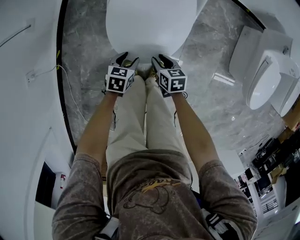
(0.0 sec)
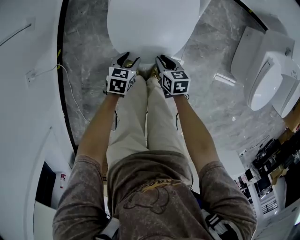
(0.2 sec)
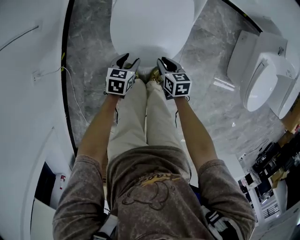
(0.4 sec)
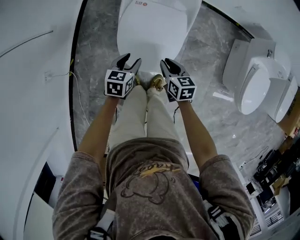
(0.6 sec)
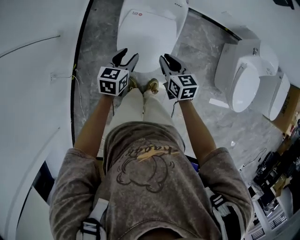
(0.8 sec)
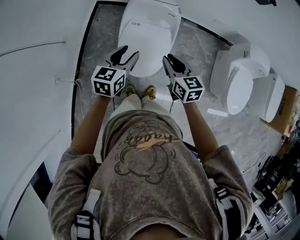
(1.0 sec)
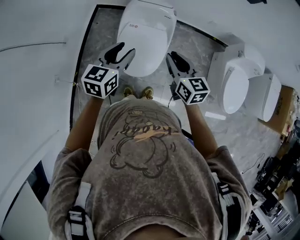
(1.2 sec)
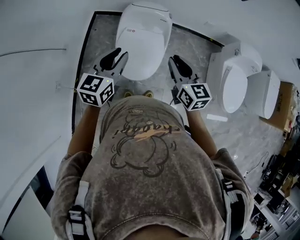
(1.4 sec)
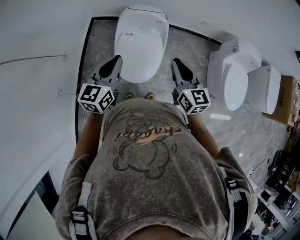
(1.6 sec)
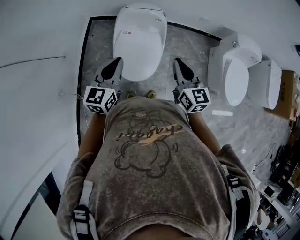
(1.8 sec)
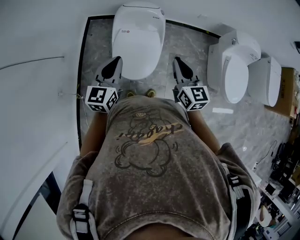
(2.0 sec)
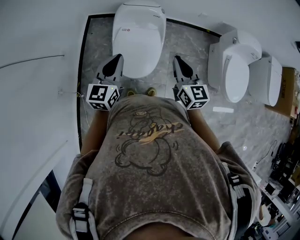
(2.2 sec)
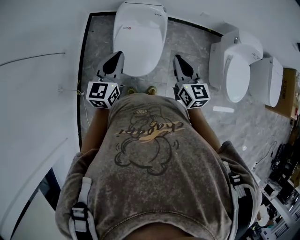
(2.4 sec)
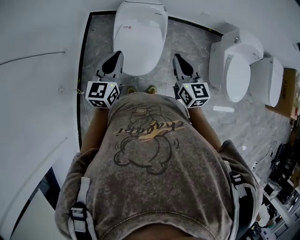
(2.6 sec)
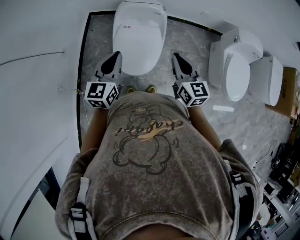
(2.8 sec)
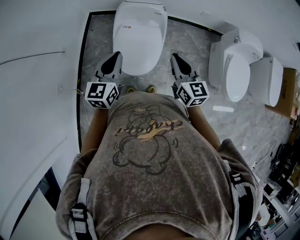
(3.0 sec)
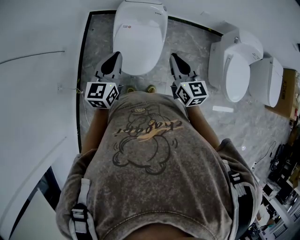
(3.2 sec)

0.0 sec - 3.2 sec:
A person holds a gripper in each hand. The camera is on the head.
0.0 sec - 1.6 sec: The grippers both shift upward by some 60 cm. The left gripper tilts its fingers about 40 degrees upward, and closes. The right gripper points its fingers some 40 degrees further upward, and closes up.
1.6 sec - 3.2 sec: The grippers move only a little.

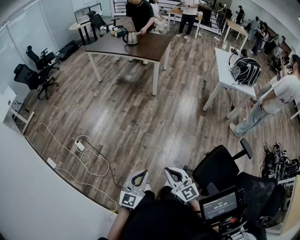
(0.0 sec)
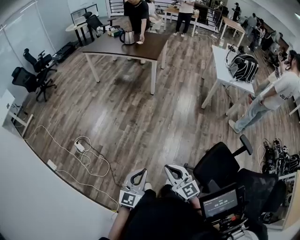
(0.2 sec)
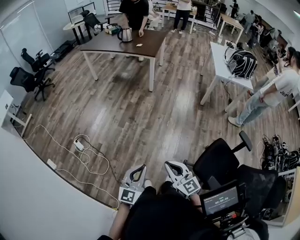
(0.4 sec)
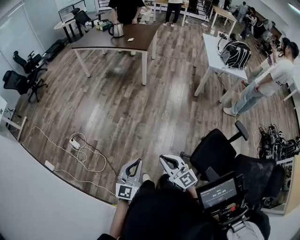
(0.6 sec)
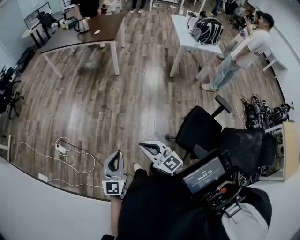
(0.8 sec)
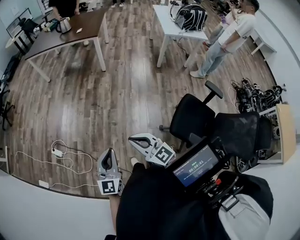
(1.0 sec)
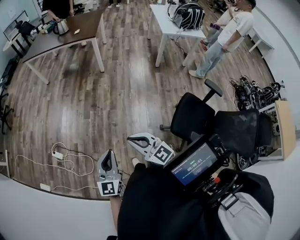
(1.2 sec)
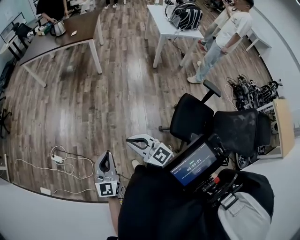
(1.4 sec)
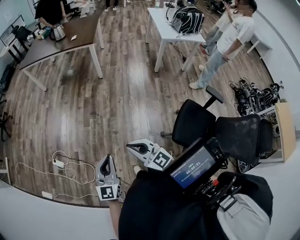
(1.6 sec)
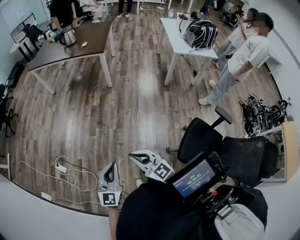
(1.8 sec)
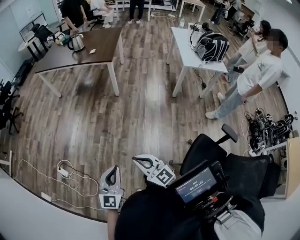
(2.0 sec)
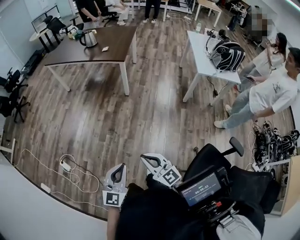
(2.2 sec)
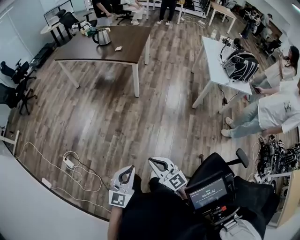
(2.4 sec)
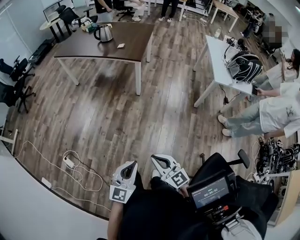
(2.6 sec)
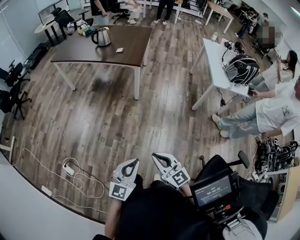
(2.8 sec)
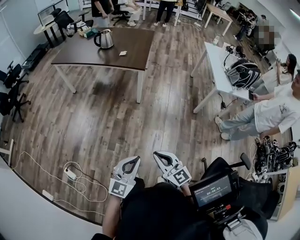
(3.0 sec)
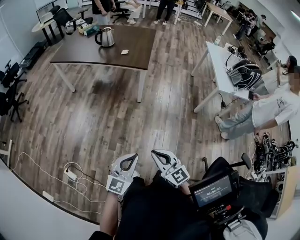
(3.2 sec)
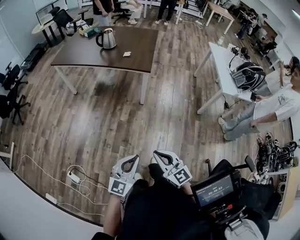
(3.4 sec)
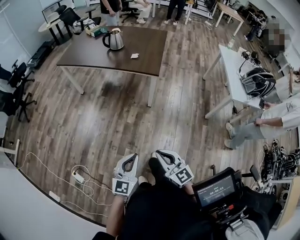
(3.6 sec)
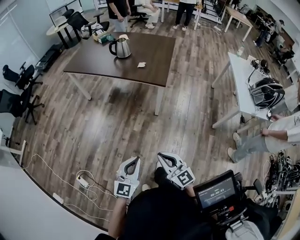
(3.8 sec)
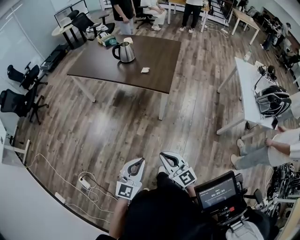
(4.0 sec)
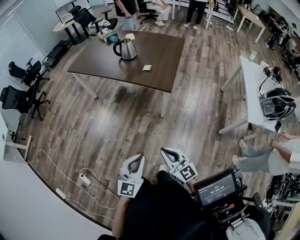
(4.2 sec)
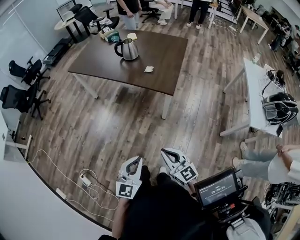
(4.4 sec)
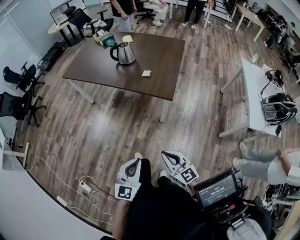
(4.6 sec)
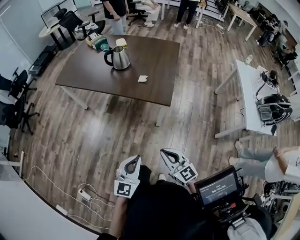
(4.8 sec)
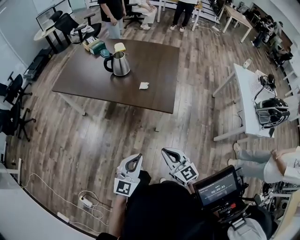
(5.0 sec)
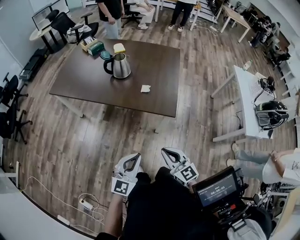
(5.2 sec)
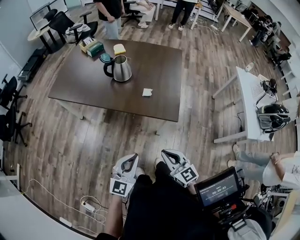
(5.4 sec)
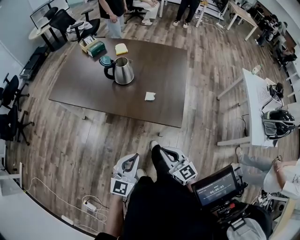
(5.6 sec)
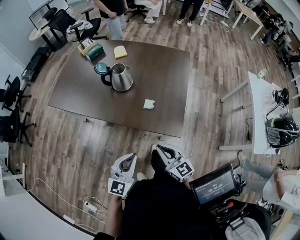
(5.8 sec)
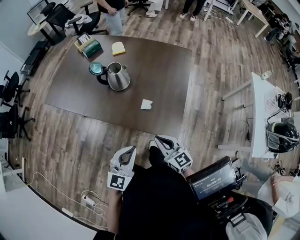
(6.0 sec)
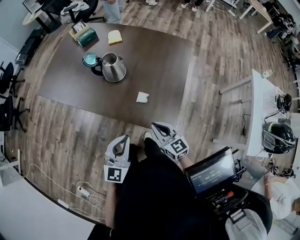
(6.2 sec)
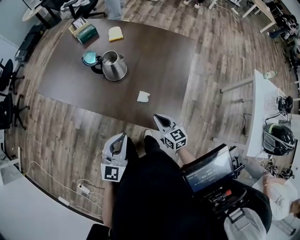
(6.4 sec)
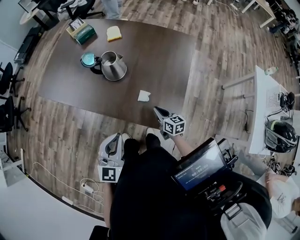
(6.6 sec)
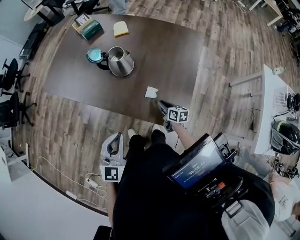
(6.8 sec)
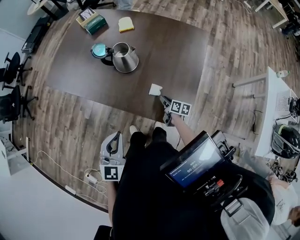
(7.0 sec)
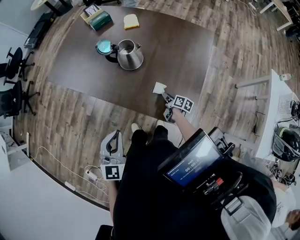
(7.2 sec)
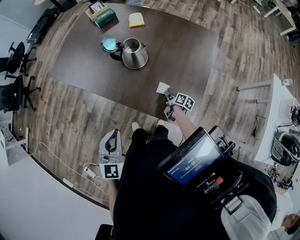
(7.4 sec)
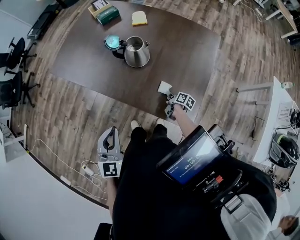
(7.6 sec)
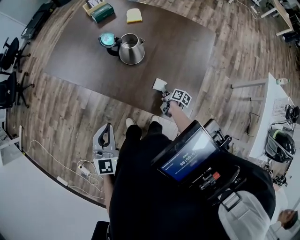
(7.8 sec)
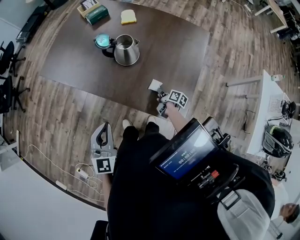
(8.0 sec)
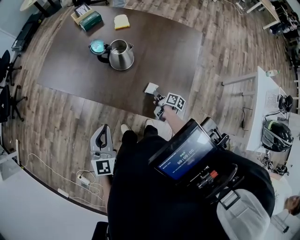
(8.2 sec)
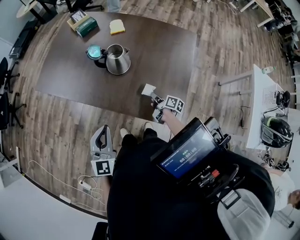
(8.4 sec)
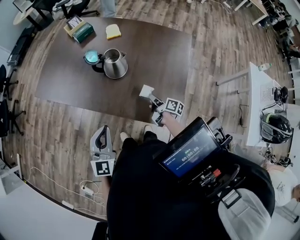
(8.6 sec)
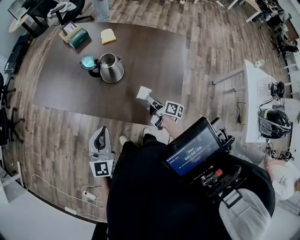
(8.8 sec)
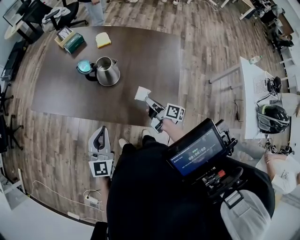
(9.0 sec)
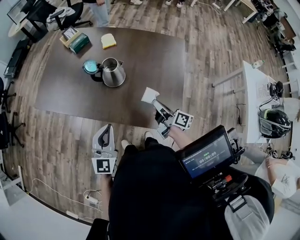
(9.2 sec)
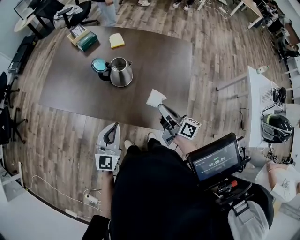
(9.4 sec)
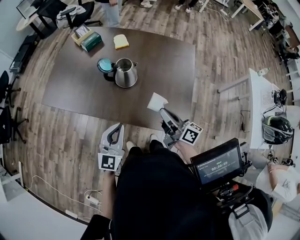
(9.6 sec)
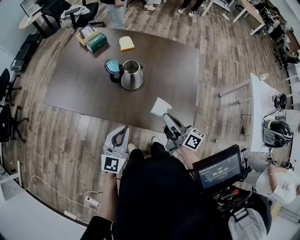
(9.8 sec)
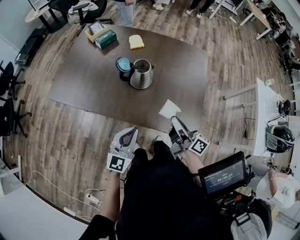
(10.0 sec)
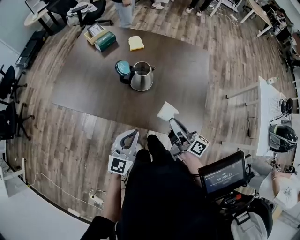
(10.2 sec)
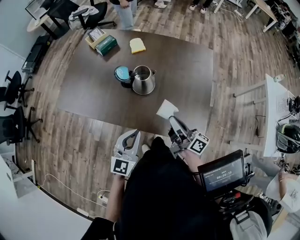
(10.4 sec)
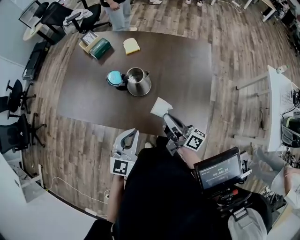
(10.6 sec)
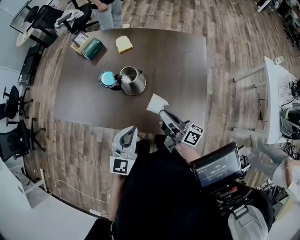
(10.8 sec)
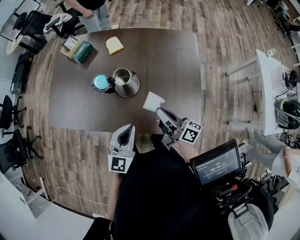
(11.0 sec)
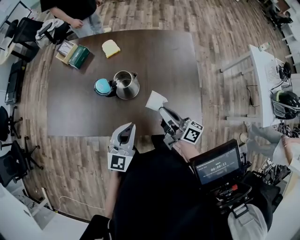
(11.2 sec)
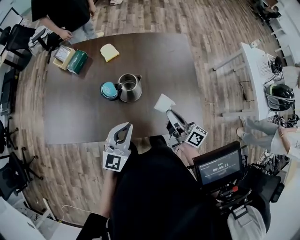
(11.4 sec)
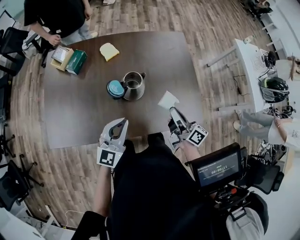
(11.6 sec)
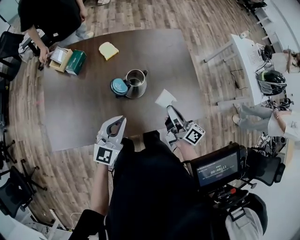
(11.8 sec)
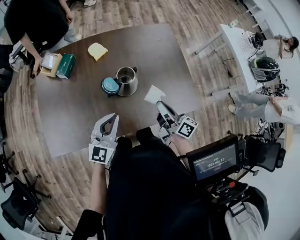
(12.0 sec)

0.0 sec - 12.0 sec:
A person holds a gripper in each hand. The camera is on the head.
0.0 sec - 1.6 sec: The two grippers go roughly 10 cm forward.
1.6 sec - 3.0 sec: The two grippers go some 35 cm forward.
3.0 sec - 4.4 sec: The two grippers go about 35 cm forward. The left gripper rotates some 20 degrees.
4.4 sec - 6.0 sec: Both grippers are carried forward, some 50 cm.
6.0 sec - 7.6 sec: The left gripper moves to the left and forward, about 15 cm, and turns by about 30 degrees, while the right gripper is displaced downward and forward by some 35 cm, rotates around the line of its fingers by about 70 degrees, clockwise from behind, and opens, then closes again.
7.6 sec - 9.0 sec: The left gripper goes some 5 cm forward; the right gripper shifts some 20 cm upward, and turns by approximately 30 degrees.
9.0 sec - 10.4 sec: The right gripper shifts roughly 15 cm upward and to the left, and turns by approximately 20 degrees.
10.4 sec - 12.0 sec: The left gripper ends up approximately 20 cm from where it was, and changes its angle by roughly 30 degrees; the right gripper changes place by roughly 10 cm, and changes its angle by roughly 30 degrees.

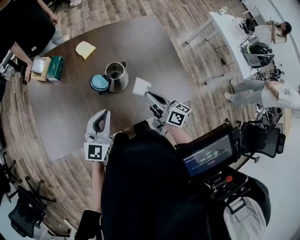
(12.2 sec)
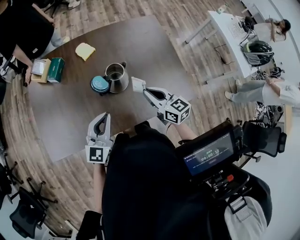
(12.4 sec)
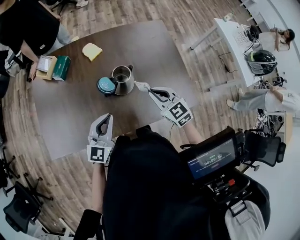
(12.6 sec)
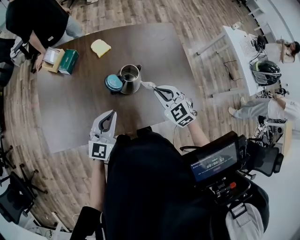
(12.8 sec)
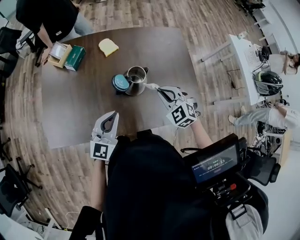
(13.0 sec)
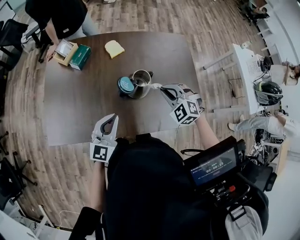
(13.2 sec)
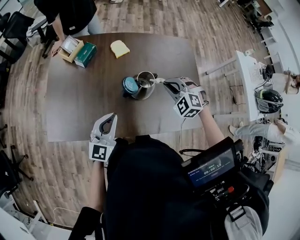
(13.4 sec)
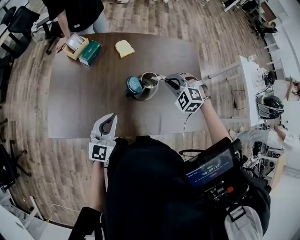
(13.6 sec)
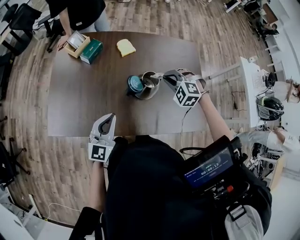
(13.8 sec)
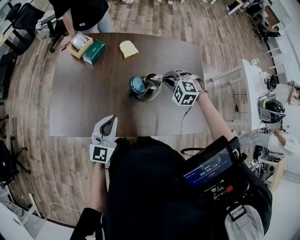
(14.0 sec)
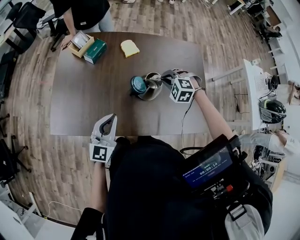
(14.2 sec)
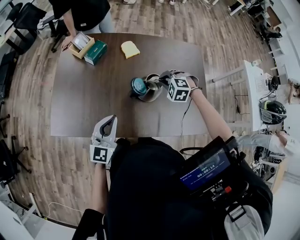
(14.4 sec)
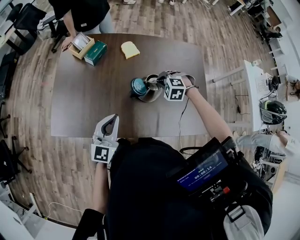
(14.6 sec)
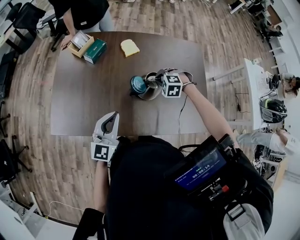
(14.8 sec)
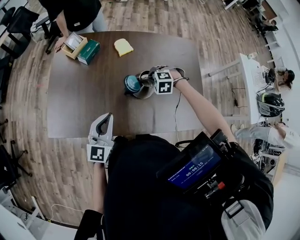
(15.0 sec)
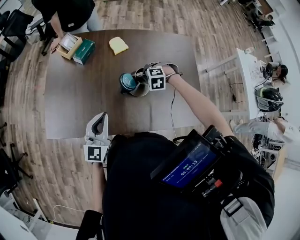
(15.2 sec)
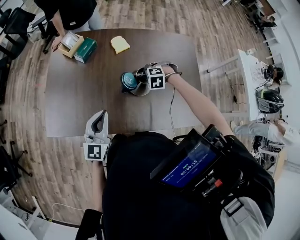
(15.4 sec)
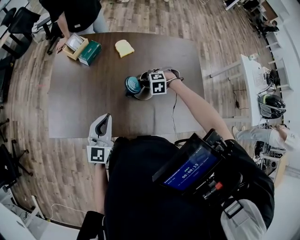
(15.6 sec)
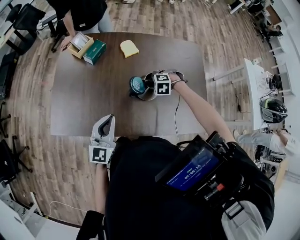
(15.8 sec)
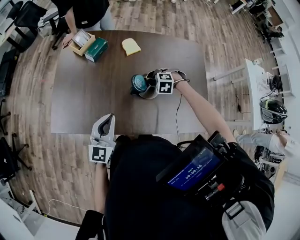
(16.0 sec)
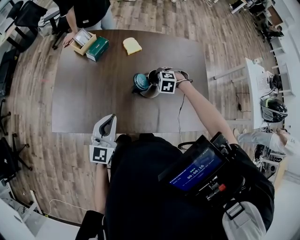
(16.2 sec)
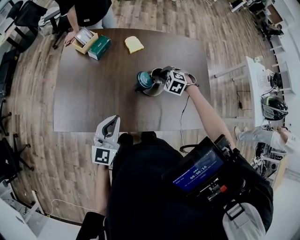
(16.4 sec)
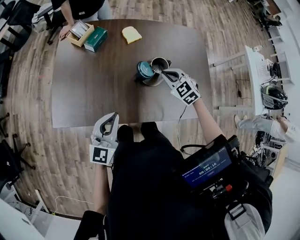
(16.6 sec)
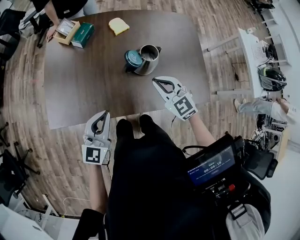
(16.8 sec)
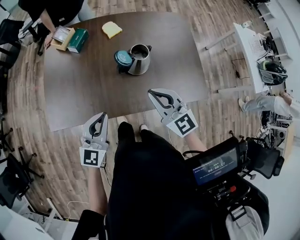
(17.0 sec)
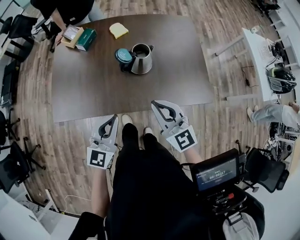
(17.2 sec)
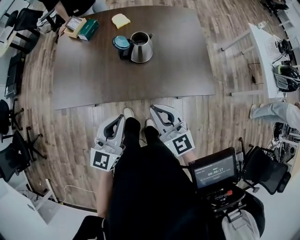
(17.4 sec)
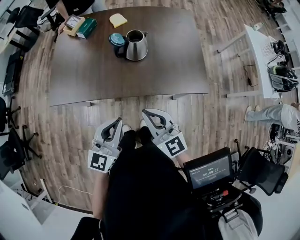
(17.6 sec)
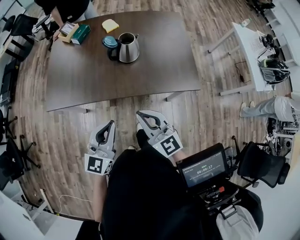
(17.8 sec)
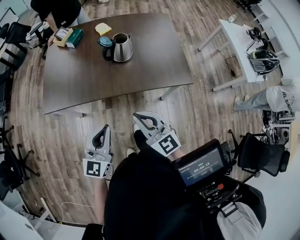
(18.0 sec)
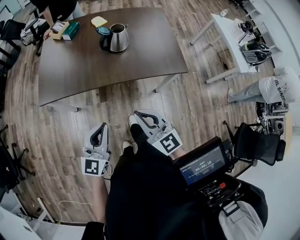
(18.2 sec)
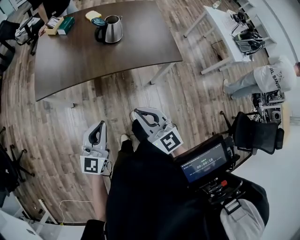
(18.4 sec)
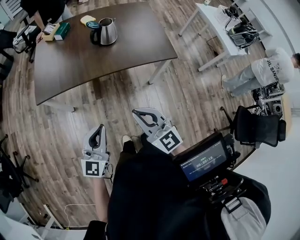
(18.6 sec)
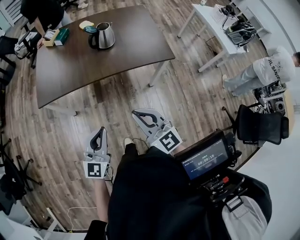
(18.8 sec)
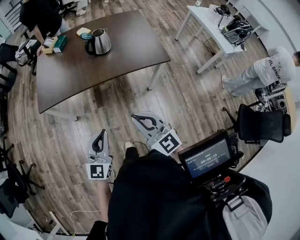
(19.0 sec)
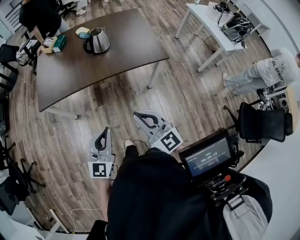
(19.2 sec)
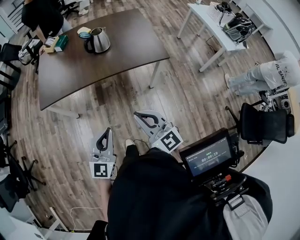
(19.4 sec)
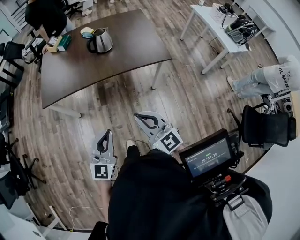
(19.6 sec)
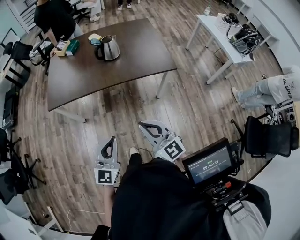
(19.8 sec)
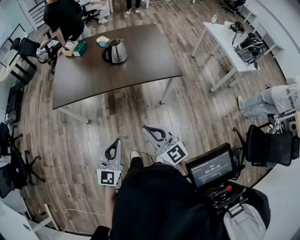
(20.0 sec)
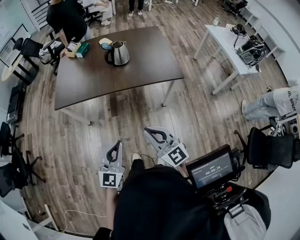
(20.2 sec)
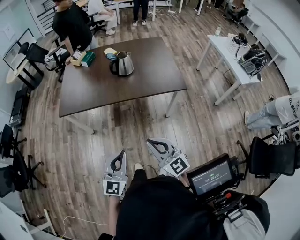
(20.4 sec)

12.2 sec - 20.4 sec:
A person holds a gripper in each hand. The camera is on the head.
12.2 sec - 13.8 sec: The left gripper shifts some 10 cm to the left. Meanwhile the right gripper moves forward and to the left, approximately 15 cm, and rotates around the line of its fingers by about 100 degrees, counterclockwise from behind.
13.8 sec - 15.4 sec: The right gripper goes roughly 15 cm downward, and changes its angle by approximately 20 degrees.
15.4 sec - 17.2 sec: The right gripper changes place by some 40 cm, and tips its fingers upward by approximately 70 degrees. Meanwhile the left gripper moves approximately 15 cm.
17.2 sec - 18.8 sec: Both grippers move backward, roughly 35 cm.
18.8 sec - 20.4 sec: Both grippers travel together backward and to the right, approximately 10 cm.
